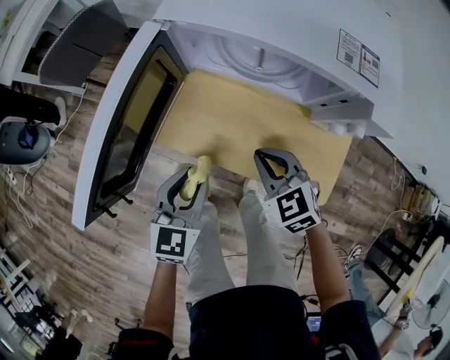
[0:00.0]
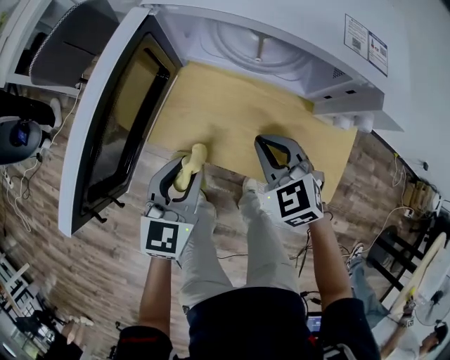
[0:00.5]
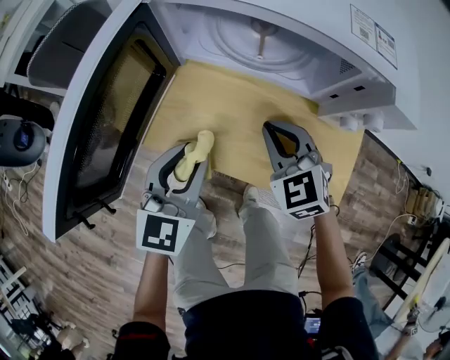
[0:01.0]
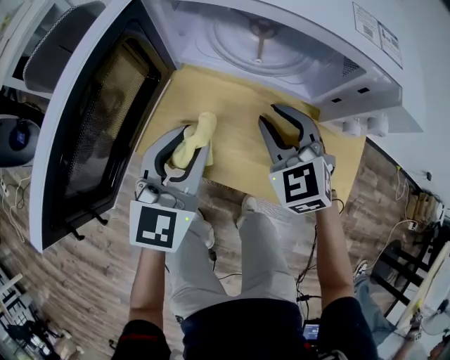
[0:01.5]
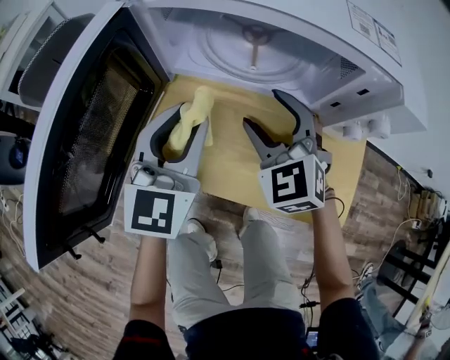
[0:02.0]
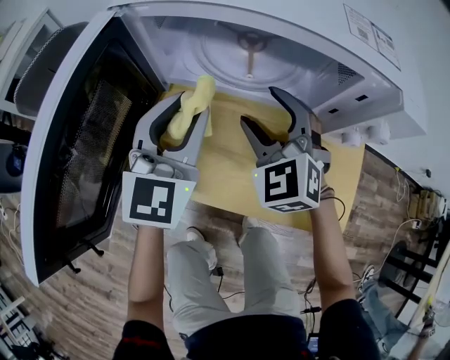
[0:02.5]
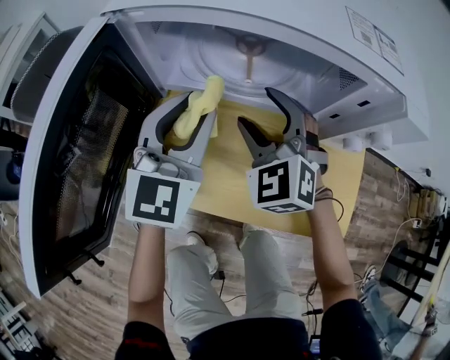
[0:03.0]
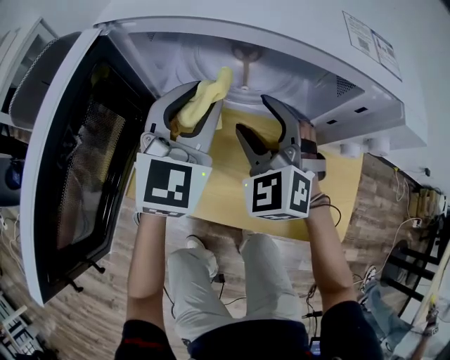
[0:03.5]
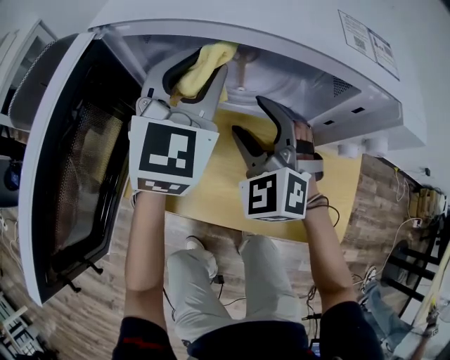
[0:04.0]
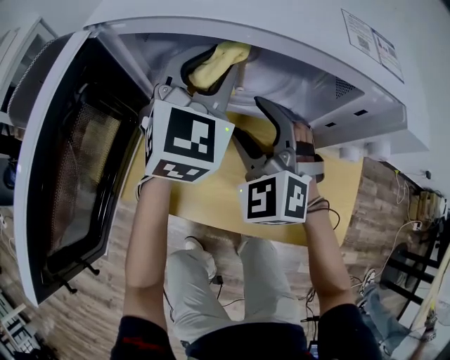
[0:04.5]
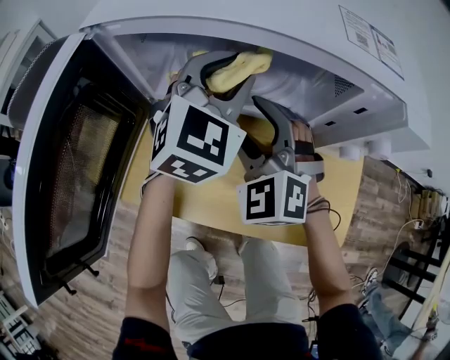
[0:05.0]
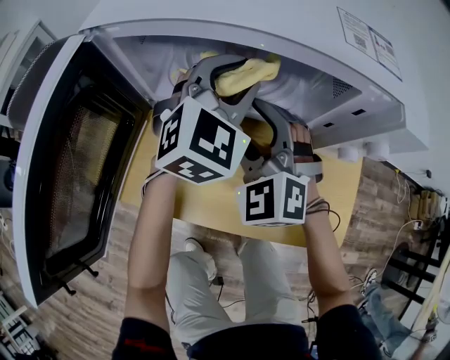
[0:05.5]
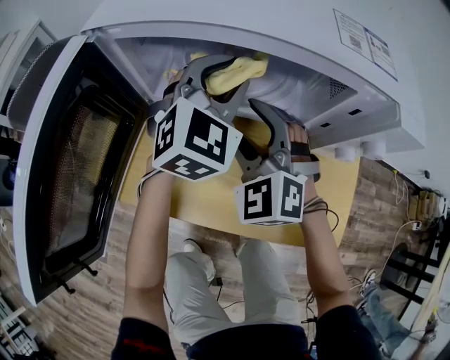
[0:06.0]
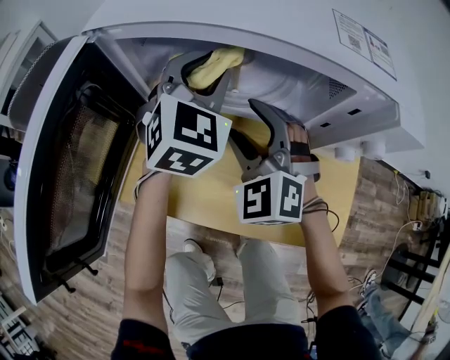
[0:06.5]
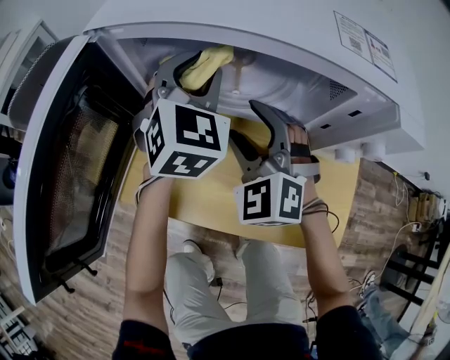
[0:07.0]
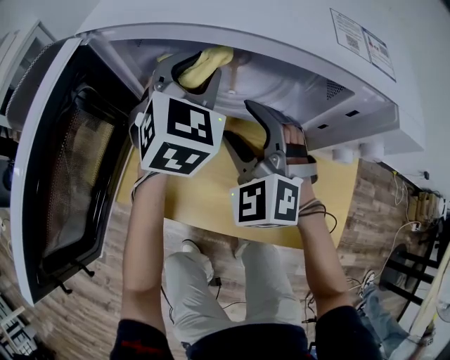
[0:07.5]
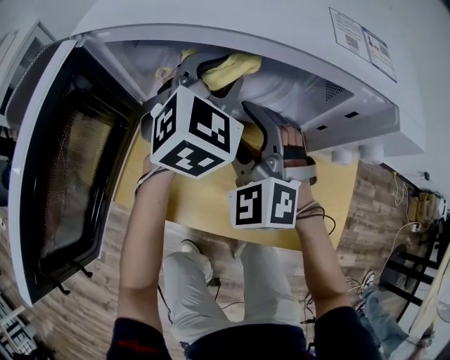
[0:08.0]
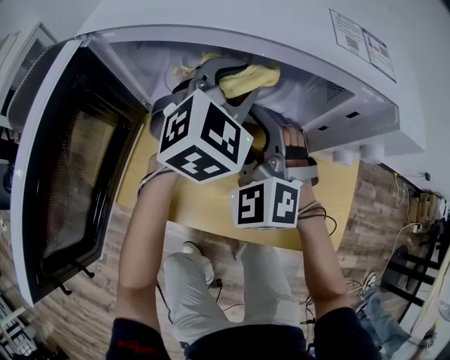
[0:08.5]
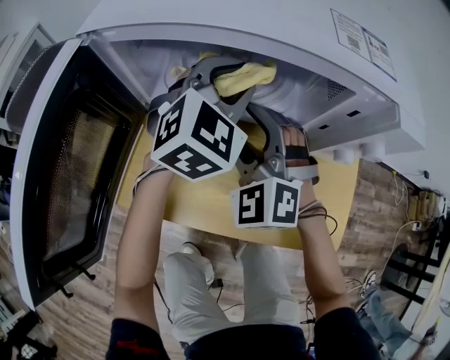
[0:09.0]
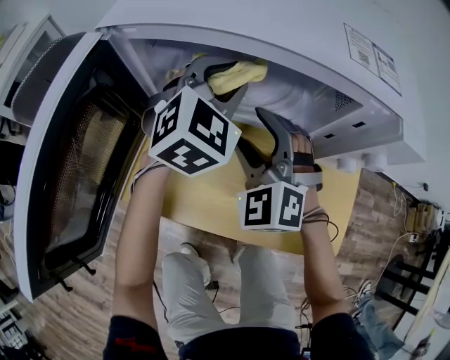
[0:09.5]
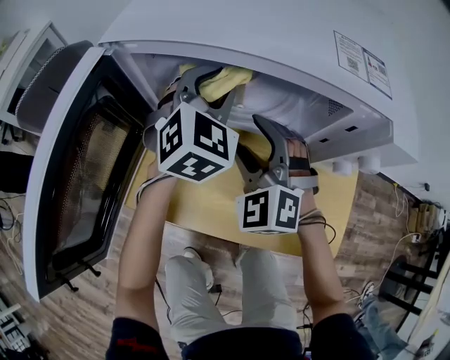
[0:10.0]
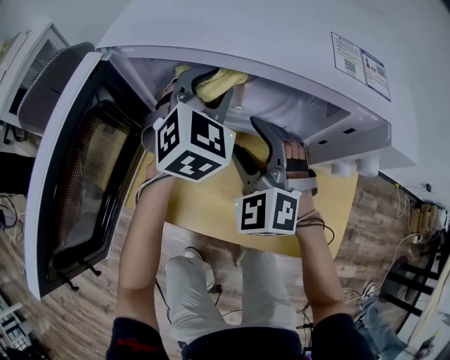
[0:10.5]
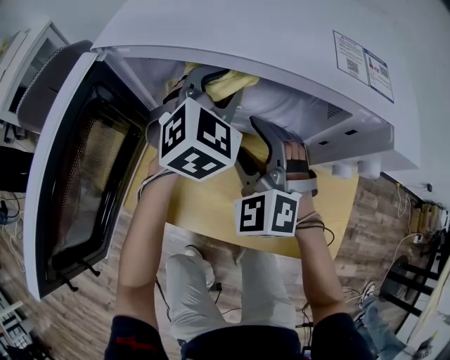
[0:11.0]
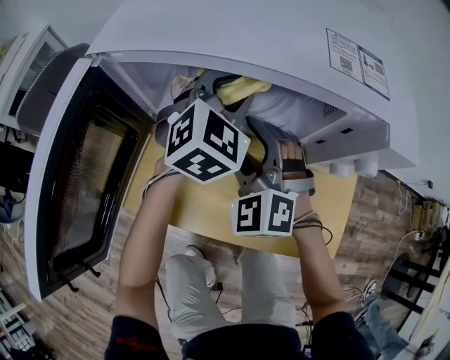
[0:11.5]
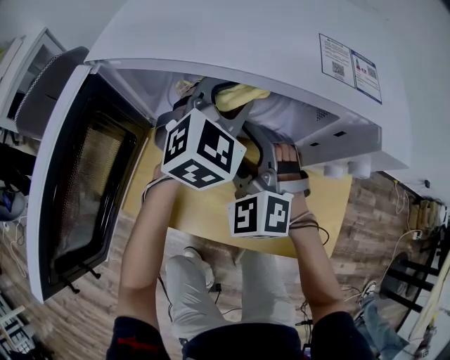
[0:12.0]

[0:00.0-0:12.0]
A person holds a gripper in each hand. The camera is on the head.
0:00.0 to 0:02.0: Both grippers move forward, some 15 cm. The right gripper rotates about 30 degrees, and opens its fingers. Meanwhile the left gripper changes its angle by about 20 degrees.
0:02.0 to 0:04.0: The left gripper is displaced forward and upward by some 15 cm.
0:04.0 to 0:06.0: The left gripper heads to the right, covering some 5 cm.
0:06.0 to 0:10.0: The grippers stay close to where they were, moving slightly.
0:10.0 to 0:12.0: The left gripper moves to the right, some 5 cm.

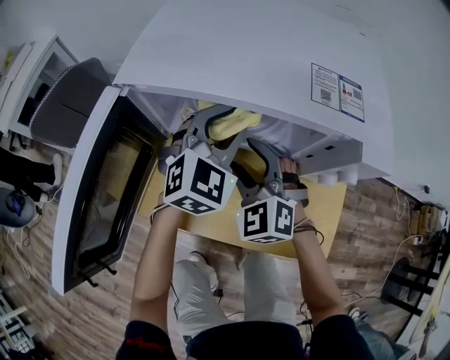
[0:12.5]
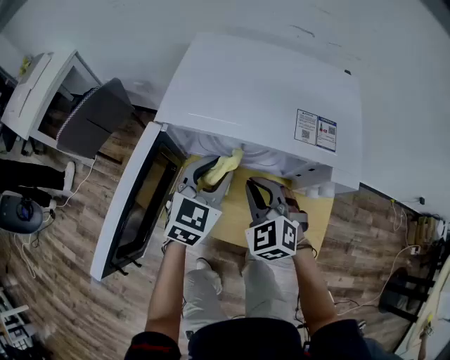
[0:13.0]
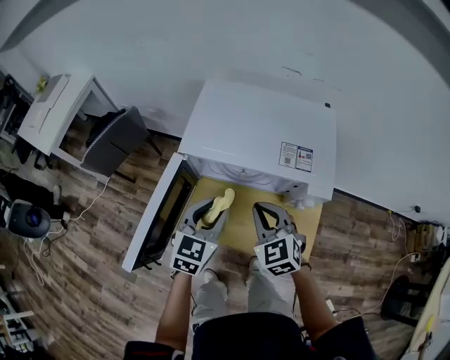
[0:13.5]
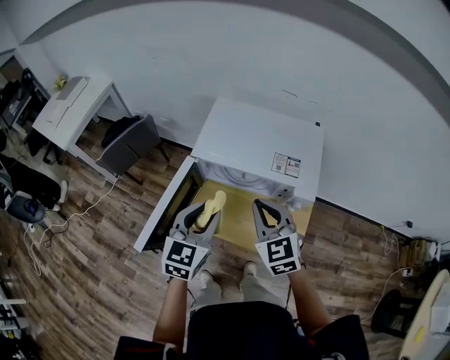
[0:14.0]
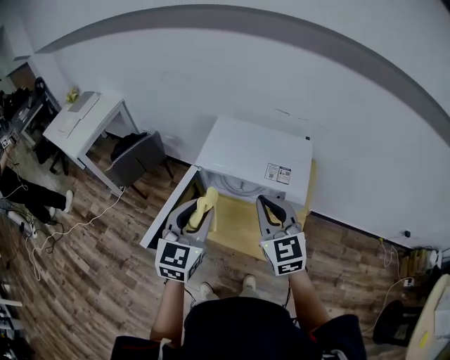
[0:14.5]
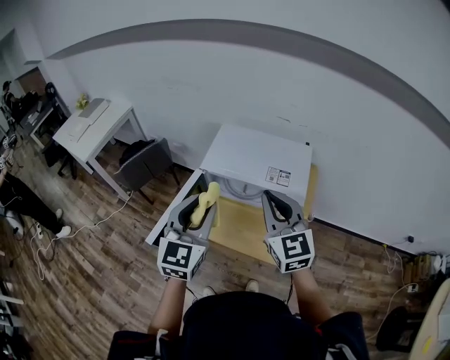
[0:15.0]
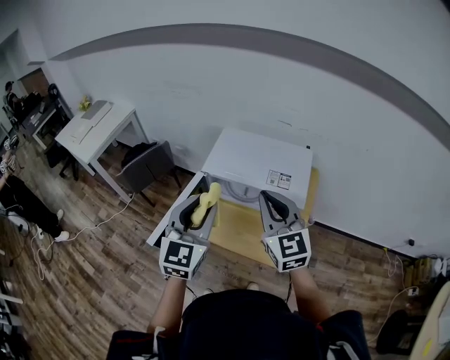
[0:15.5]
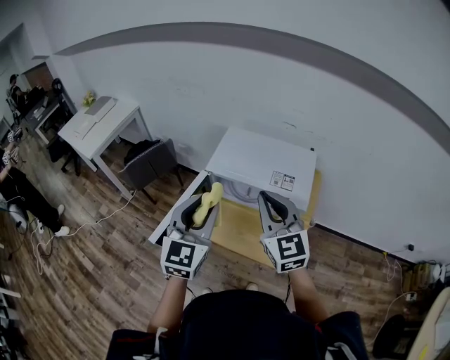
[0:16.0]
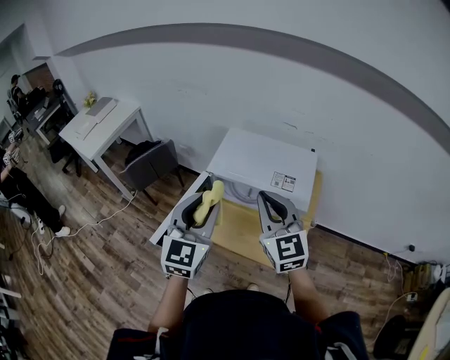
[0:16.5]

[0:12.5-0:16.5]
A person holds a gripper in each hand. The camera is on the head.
0:12.5 to 0:14.5: The left gripper heads upward and backward, covering approximately 35 cm, and changes its angle by some 30 degrees. The right gripper goes some 35 cm upward, changes its angle by about 40 degrees, and closes its fingers.
0:14.5 to 0:16.5: Both grippers move upward, some 5 cm.

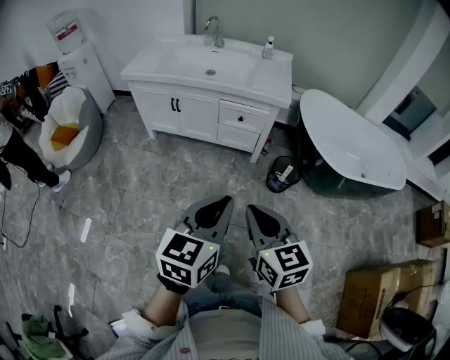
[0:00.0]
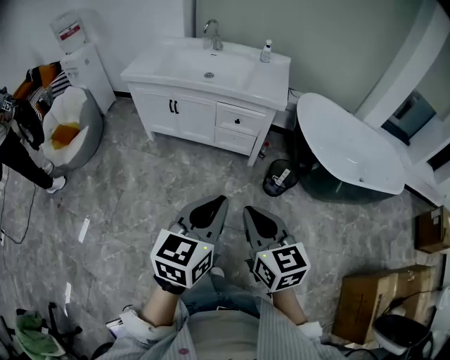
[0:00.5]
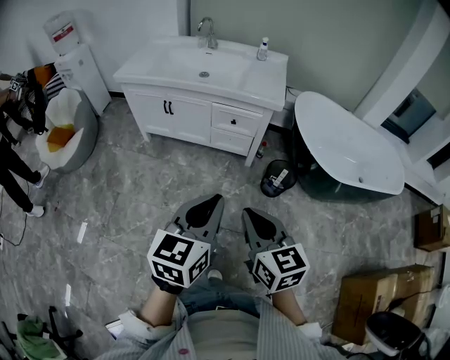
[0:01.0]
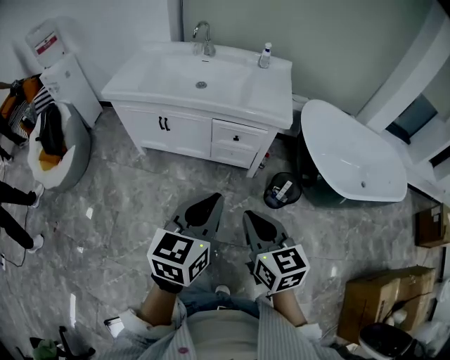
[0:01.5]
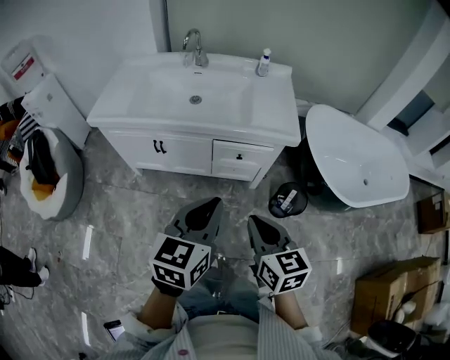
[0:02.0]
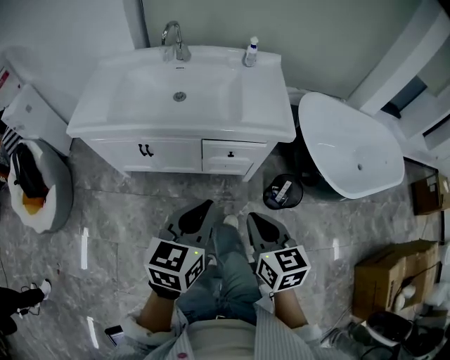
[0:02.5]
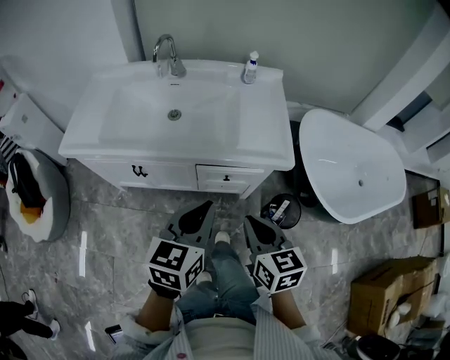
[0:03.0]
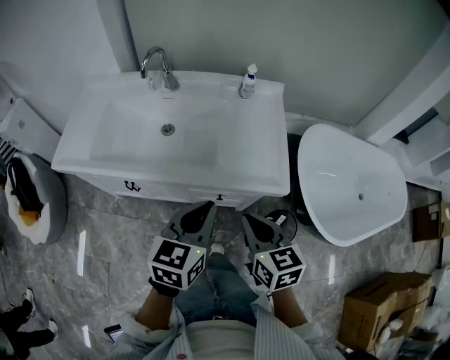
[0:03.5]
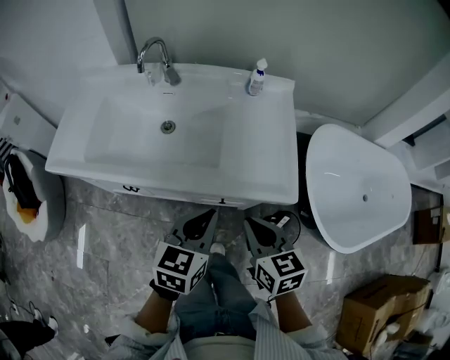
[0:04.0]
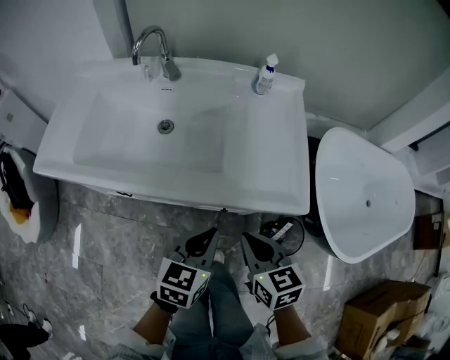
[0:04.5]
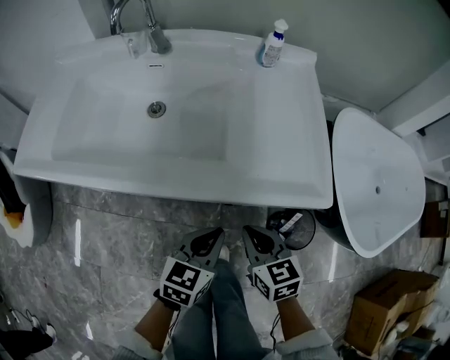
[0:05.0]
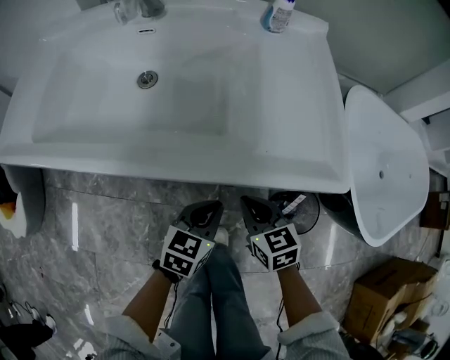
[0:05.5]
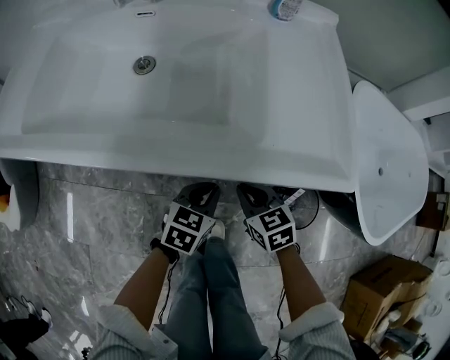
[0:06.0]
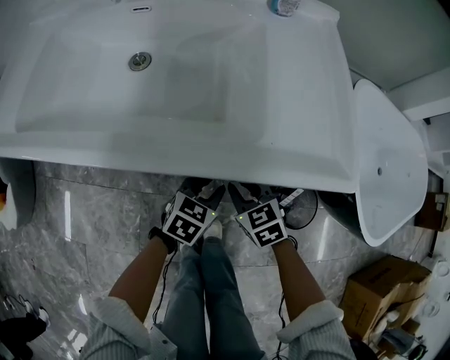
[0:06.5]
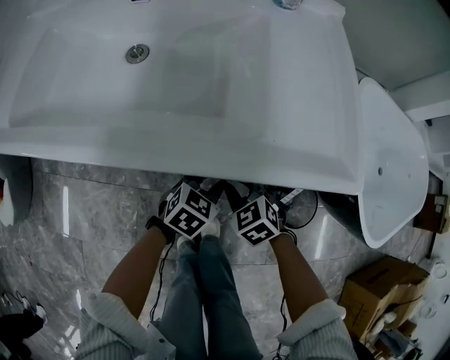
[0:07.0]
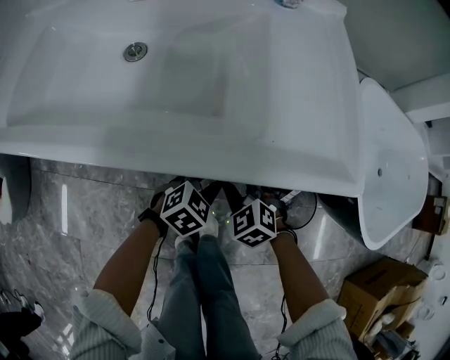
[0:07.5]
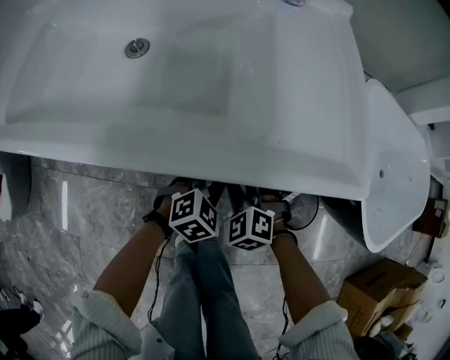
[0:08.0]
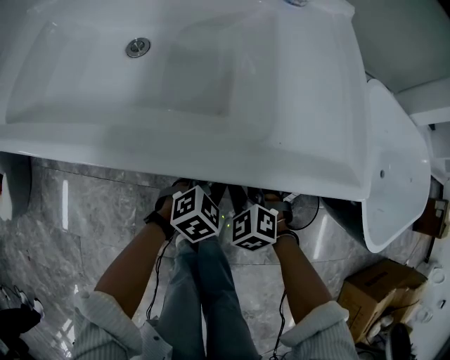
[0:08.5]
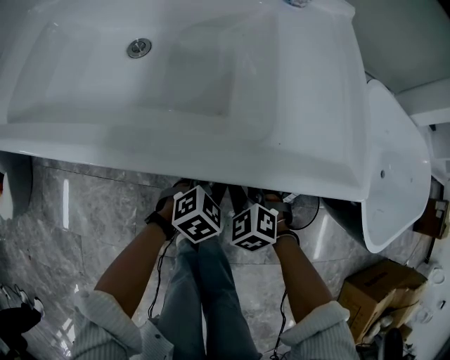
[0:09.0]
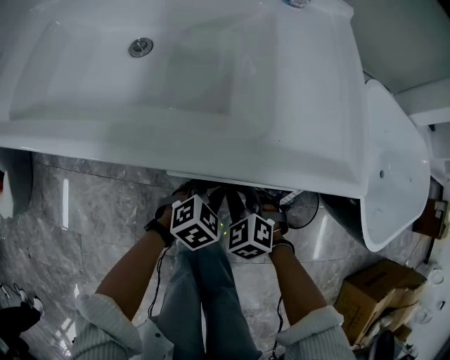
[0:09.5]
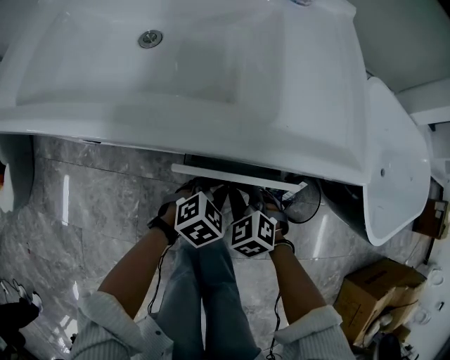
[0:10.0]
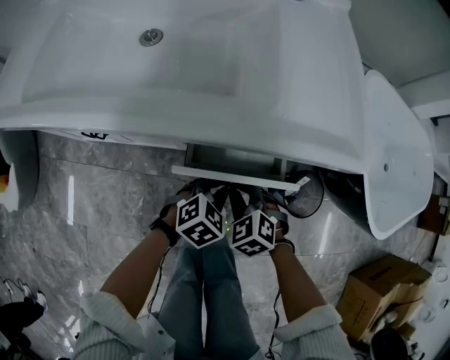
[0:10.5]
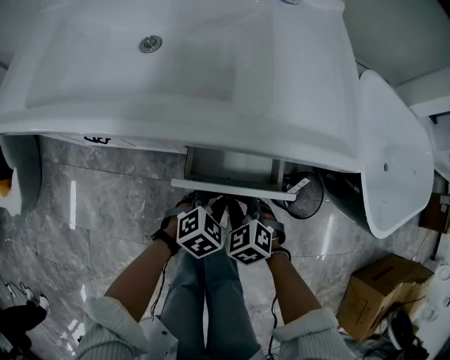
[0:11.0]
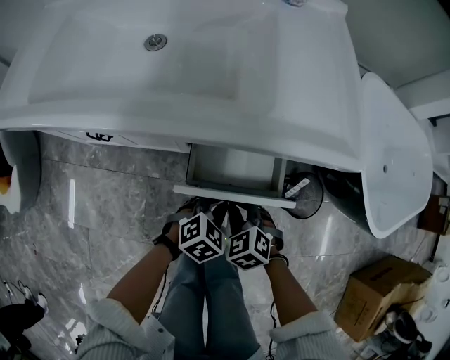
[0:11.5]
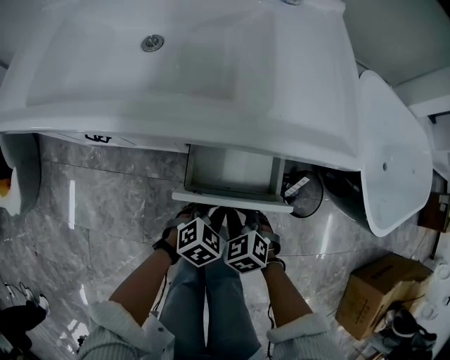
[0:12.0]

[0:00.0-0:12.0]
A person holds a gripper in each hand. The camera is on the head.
0:00.0 to 0:02.0: Both grippers travel together forward, roughly 25 cm.
0:02.0 to 0:04.0: The grippers both shift forward by roughly 25 cm.
0:04.0 to 0:06.0: Both grippers travel together downward, about 30 cm.
0:06.0 to 0:08.0: The right gripper rotates around the line of its fingers by roughly 50 degrees, counterclockwise from behind. The left gripper ends up some 5 cm from where it was, and turns by some 40 degrees.
0:08.0 to 0:10.0: The grippers both shift backward by some 5 cm.
0:10.0 to 0:12.0: Both grippers travel together backward, some 5 cm.
